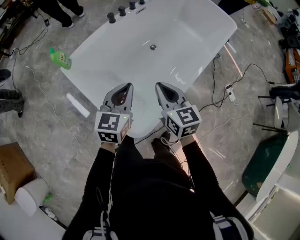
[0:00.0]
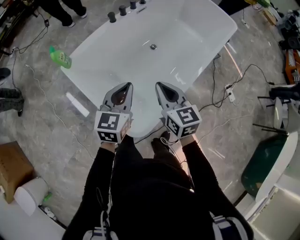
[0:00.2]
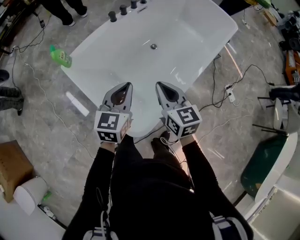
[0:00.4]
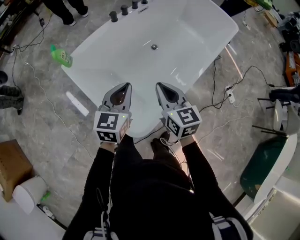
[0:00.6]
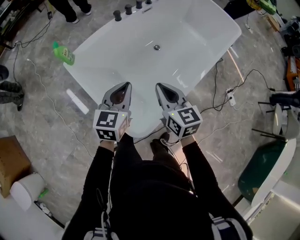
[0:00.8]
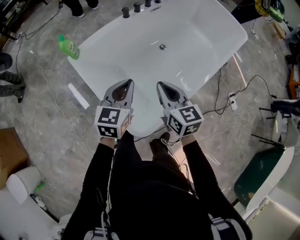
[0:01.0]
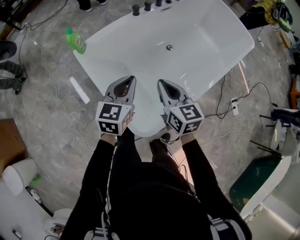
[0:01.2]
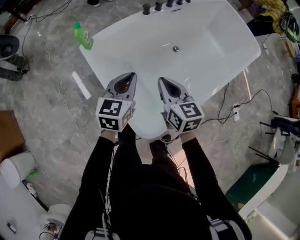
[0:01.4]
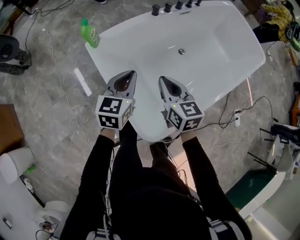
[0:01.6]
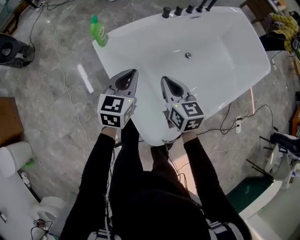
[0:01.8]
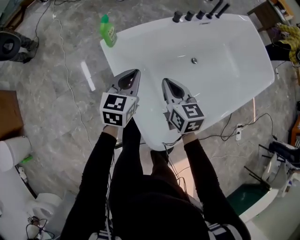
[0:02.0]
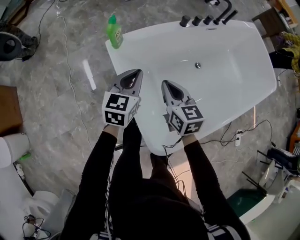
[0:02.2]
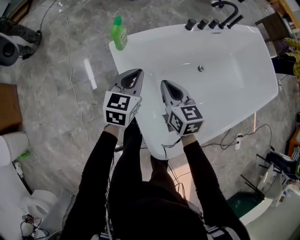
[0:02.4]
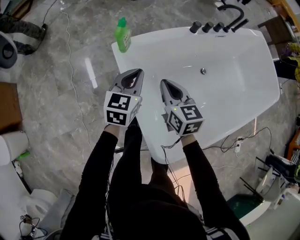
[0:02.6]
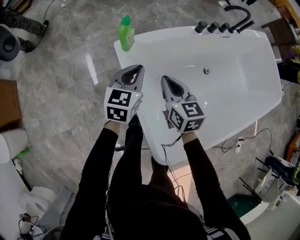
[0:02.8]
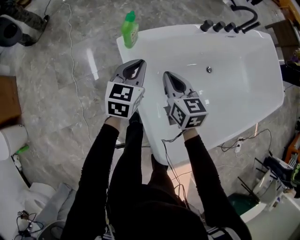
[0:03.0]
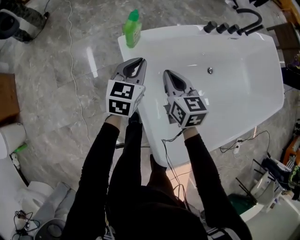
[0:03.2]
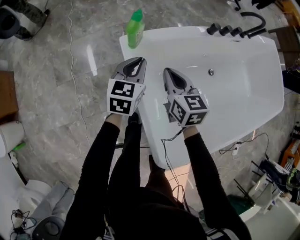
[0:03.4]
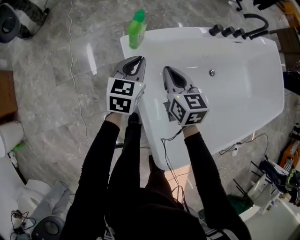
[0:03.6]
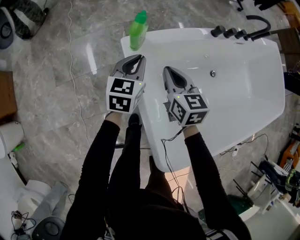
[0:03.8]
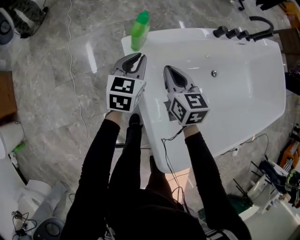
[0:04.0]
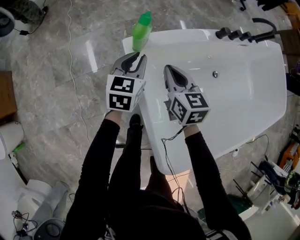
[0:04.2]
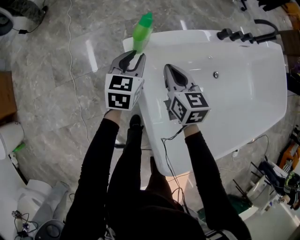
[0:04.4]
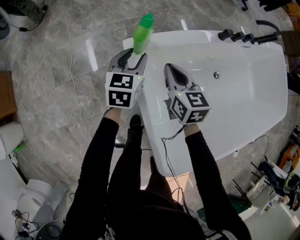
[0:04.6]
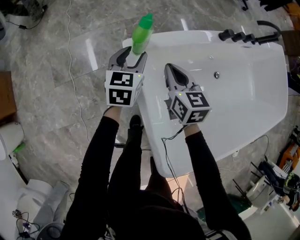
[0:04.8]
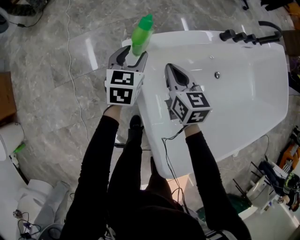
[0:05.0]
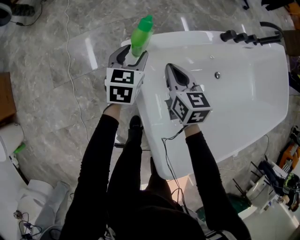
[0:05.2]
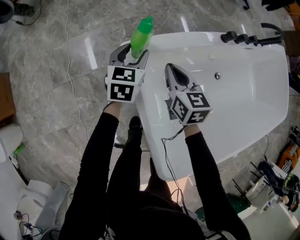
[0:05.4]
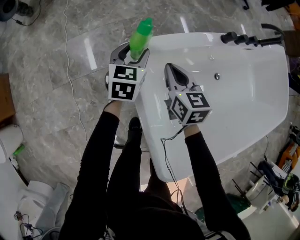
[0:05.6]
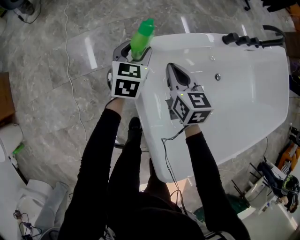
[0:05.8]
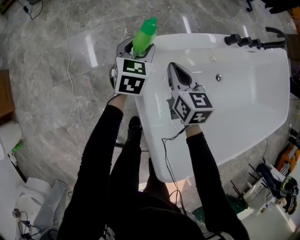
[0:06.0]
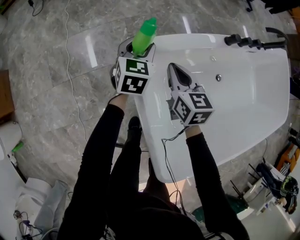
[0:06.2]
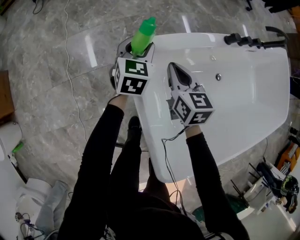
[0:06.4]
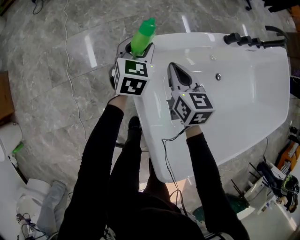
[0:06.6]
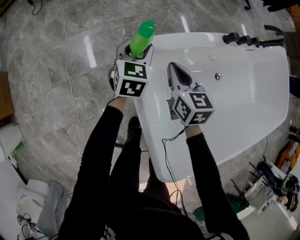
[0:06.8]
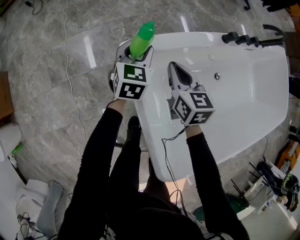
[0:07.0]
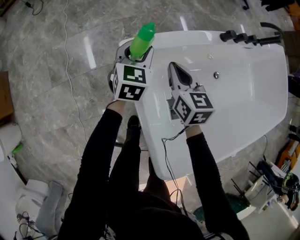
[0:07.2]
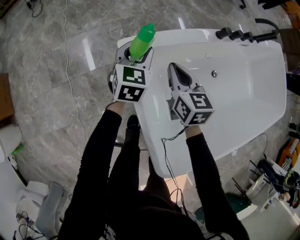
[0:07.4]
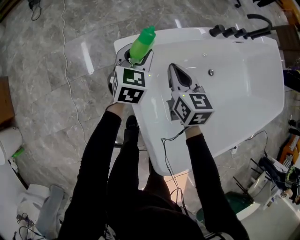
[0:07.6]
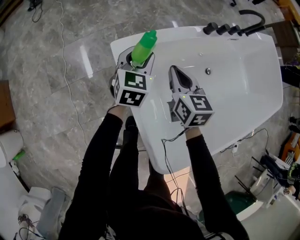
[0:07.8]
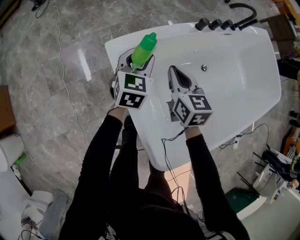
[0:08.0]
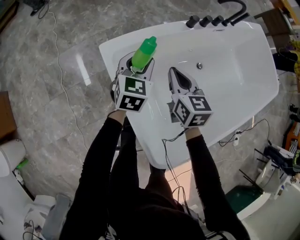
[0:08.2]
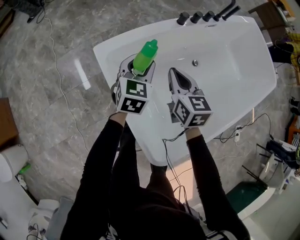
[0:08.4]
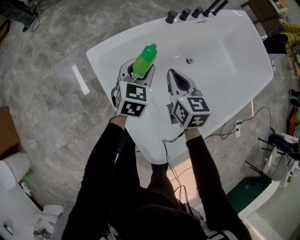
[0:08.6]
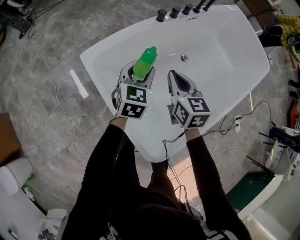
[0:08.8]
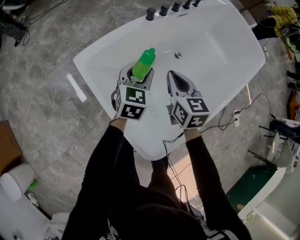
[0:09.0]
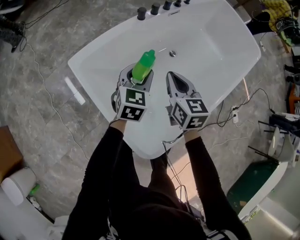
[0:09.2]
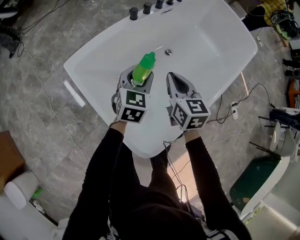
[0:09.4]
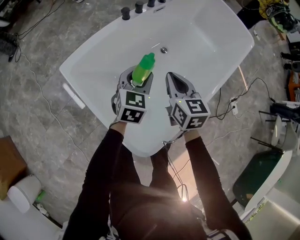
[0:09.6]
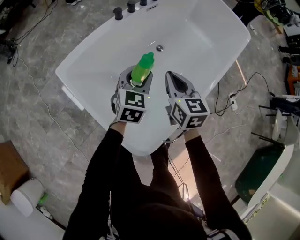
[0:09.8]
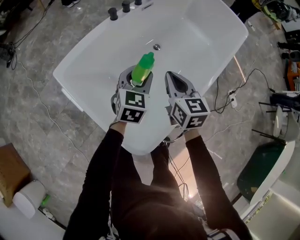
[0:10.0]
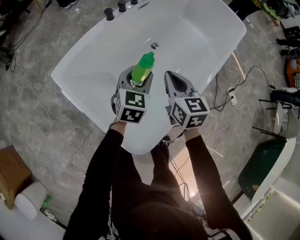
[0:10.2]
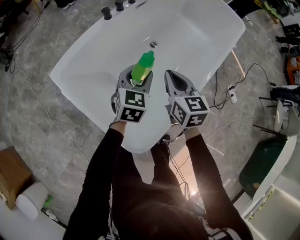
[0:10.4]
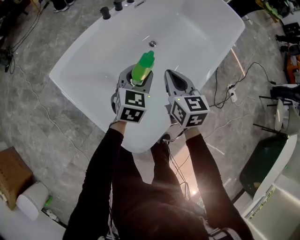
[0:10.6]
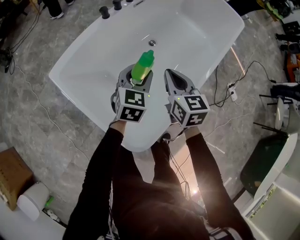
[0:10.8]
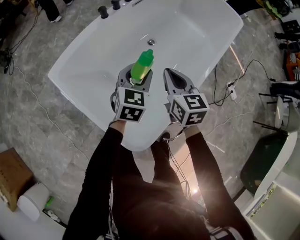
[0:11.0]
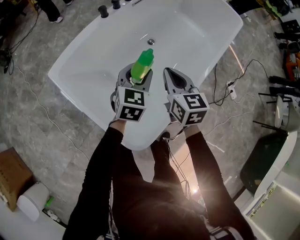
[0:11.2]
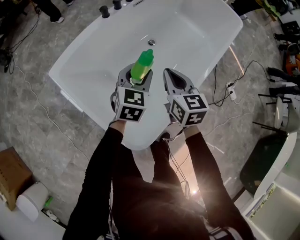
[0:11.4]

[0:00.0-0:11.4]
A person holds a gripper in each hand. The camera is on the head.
0:00.0 to 0:01.4: The left gripper travels to the left by about 10 cm. The right gripper heads to the left and forward, covering approximately 10 cm.
0:01.4 to 0:02.8: The grippers both shift to the left, forward and downward by roughly 25 cm.
0:02.8 to 0:04.2: The right gripper is displaced forward and downward by some 10 cm. Meanwhile the left gripper is displaced forward, downward and to the left by some 15 cm.
0:04.2 to 0:05.6: The right gripper changes place by approximately 5 cm. Meanwhile the left gripper is displaced forward by roughly 5 cm, and opens.
0:05.6 to 0:07.2: There are only small adjustments of the grippers.
0:07.2 to 0:08.6: Both grippers move to the right, backward and upward, about 25 cm.
0:08.6 to 0:10.0: Both grippers move to the right, roughly 20 cm.
0:10.0 to 0:11.4: The grippers move only a little.

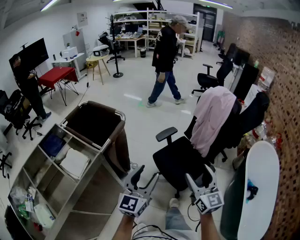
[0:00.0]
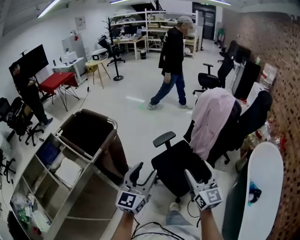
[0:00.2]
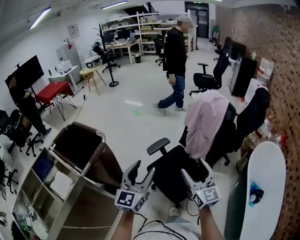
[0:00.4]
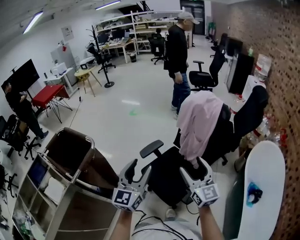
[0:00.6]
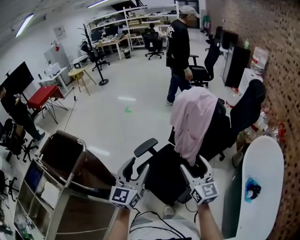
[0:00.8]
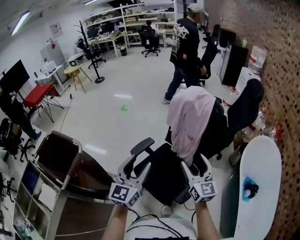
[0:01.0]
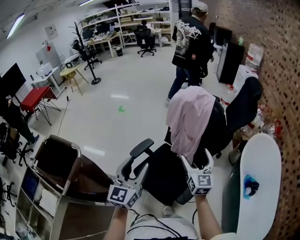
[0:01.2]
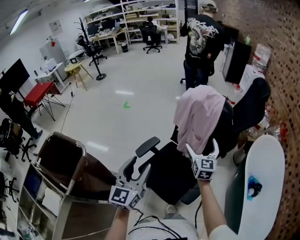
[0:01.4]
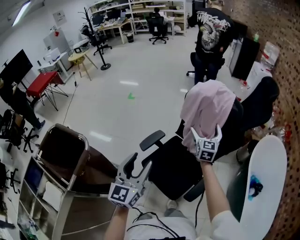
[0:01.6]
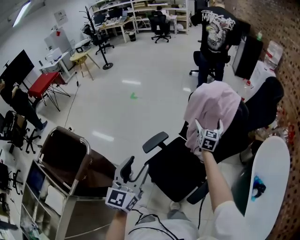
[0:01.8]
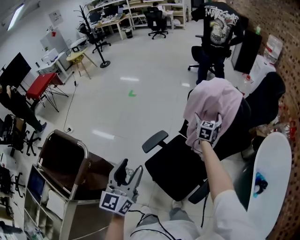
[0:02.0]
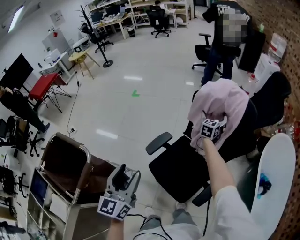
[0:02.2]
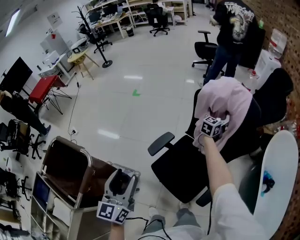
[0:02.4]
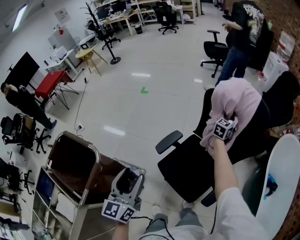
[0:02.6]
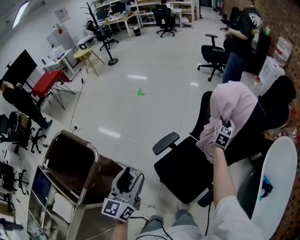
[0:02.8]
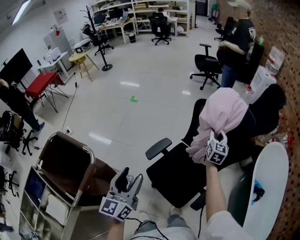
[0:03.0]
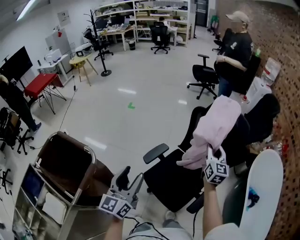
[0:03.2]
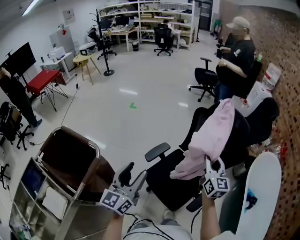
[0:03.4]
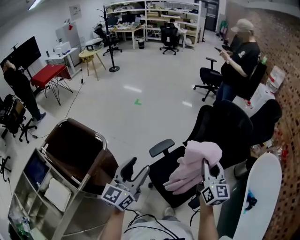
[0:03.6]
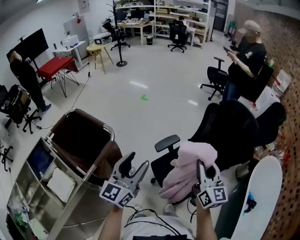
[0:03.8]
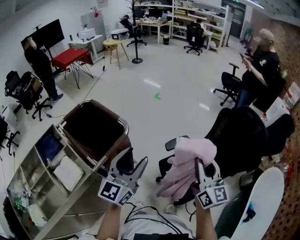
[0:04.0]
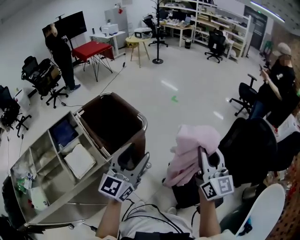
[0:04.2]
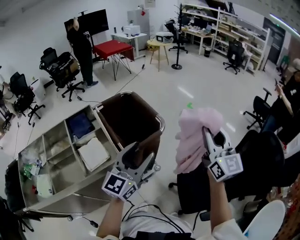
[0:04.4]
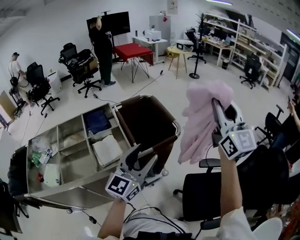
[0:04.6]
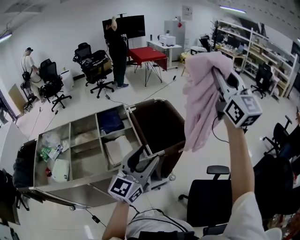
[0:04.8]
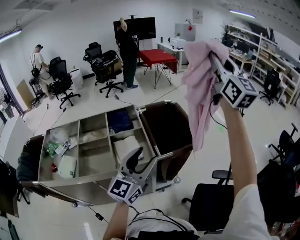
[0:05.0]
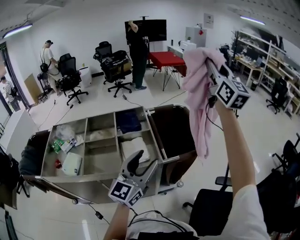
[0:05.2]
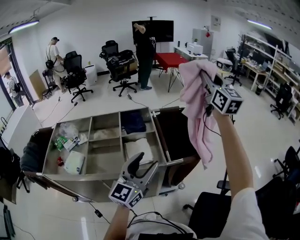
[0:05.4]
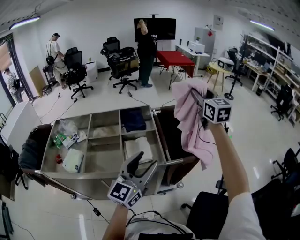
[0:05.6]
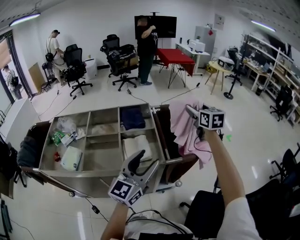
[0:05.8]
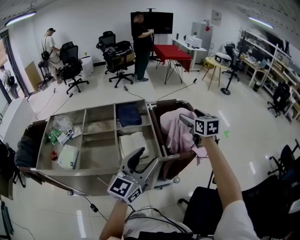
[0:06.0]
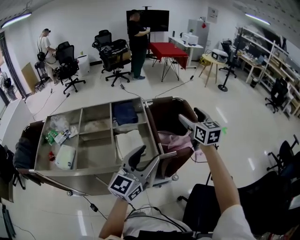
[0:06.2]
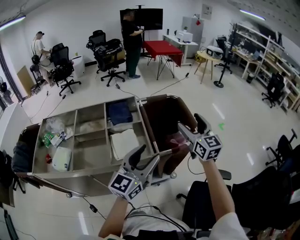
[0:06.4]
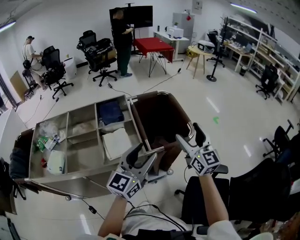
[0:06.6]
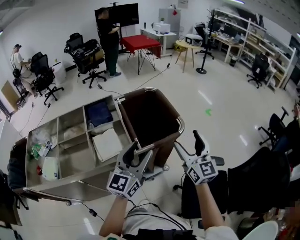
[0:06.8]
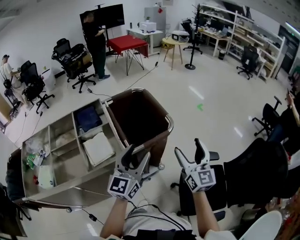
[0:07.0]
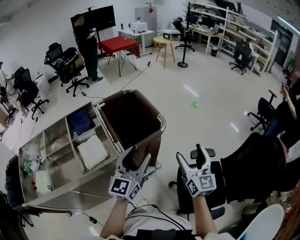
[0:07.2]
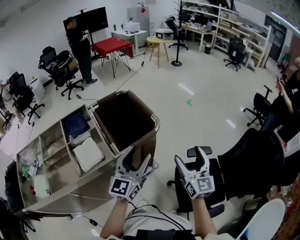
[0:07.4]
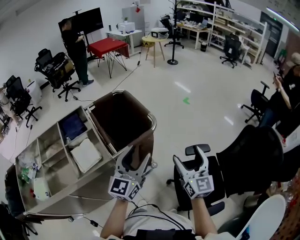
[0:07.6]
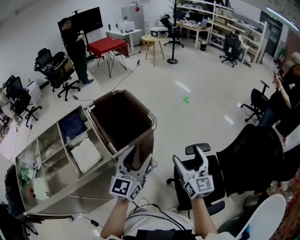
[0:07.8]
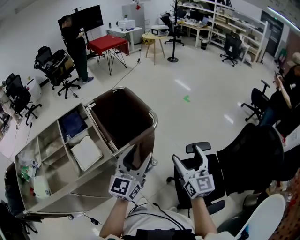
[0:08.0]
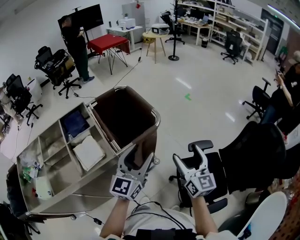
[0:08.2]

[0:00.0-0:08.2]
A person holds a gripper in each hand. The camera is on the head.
0:00.0 to 0:01.6: The left gripper shifts some 30 cm forward. The right gripper heads forward and to the right, covering approximately 50 cm, rotates about 30 degrees, and opens.
0:01.6 to 0:03.2: The left gripper shifts roughly 10 cm to the left. Meanwhile the right gripper reaches some 15 cm forward, then returns, and closes up.
0:03.2 to 0:05.0: The right gripper ends up some 80 cm from where it was, and angles its fingers upward, by roughly 30 degrees. The left gripper moves approximately 40 cm, and changes its angle by approximately 50 degrees.
0:05.0 to 0:06.6: The right gripper travels downward by approximately 35 cm, rotates about 20 degrees, and opens its fingers. Meanwhile the left gripper travels downward by roughly 5 cm, and moves roughly 5 cm to the left and comes back.
0:06.6 to 0:08.2: The right gripper heads to the right, backward and downward, covering roughly 20 cm, and rotates roughly 30 degrees. The left gripper heads to the right, covering about 15 cm.

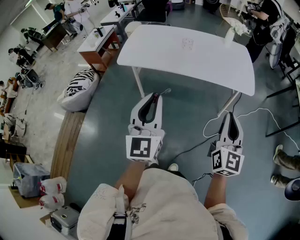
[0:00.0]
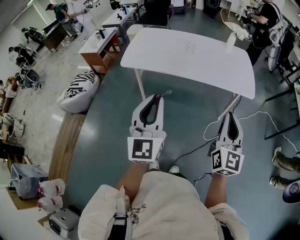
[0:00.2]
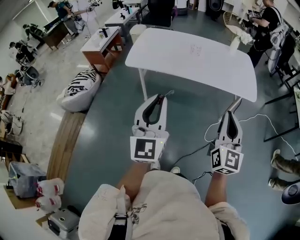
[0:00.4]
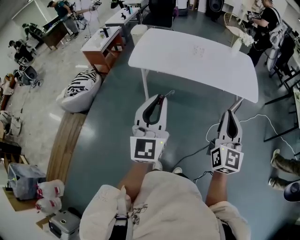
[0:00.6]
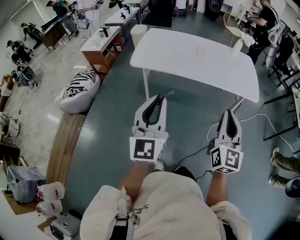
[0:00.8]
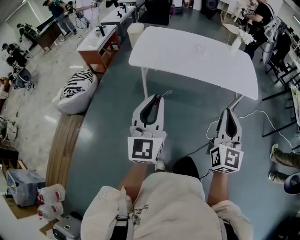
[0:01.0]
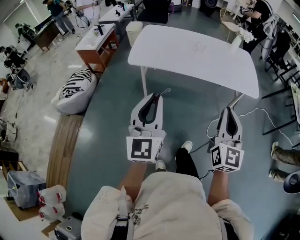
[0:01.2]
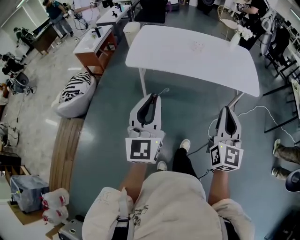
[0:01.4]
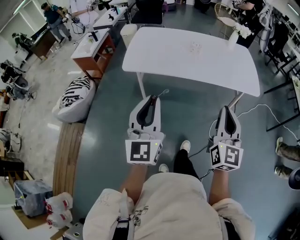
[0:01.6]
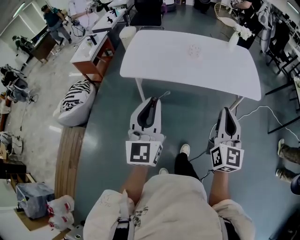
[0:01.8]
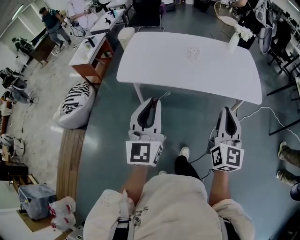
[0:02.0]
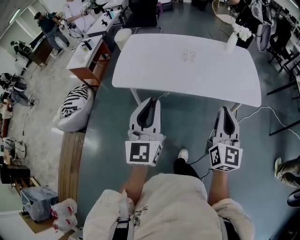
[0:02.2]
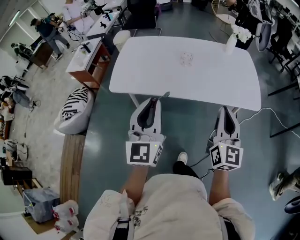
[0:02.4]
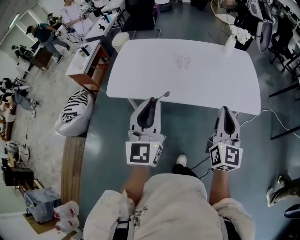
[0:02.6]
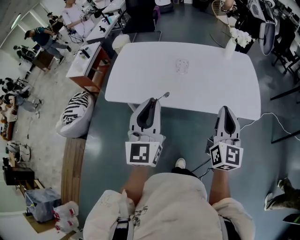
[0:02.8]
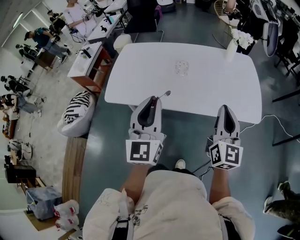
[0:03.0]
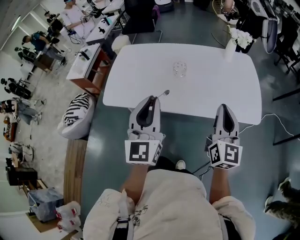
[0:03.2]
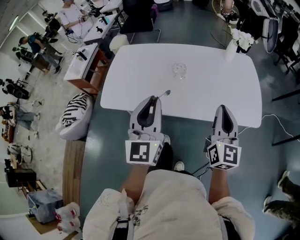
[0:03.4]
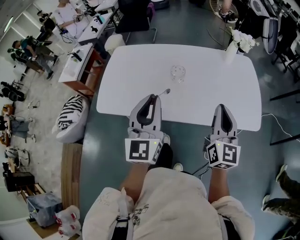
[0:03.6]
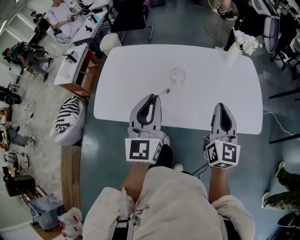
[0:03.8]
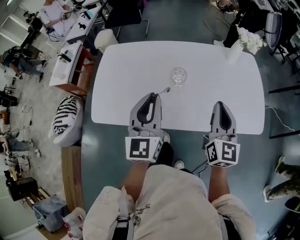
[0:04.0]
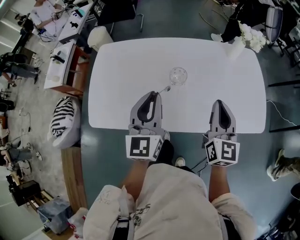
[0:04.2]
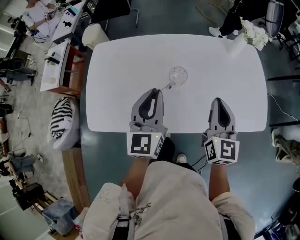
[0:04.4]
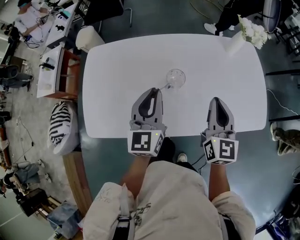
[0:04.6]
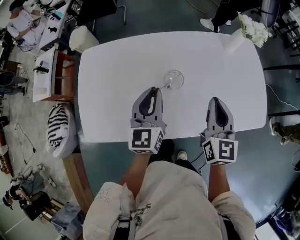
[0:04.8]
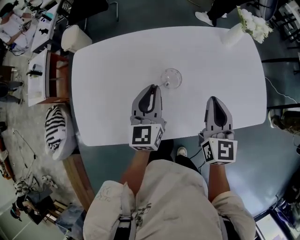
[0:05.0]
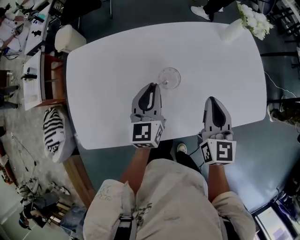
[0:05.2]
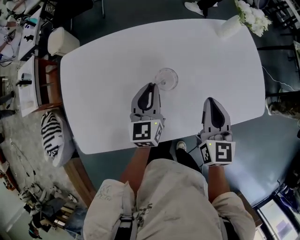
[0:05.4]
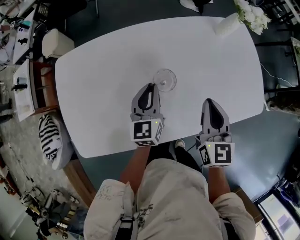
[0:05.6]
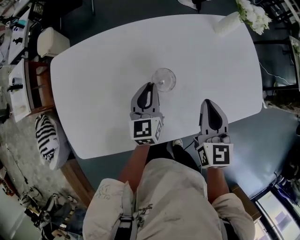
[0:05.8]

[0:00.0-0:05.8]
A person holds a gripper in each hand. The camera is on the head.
0:00.0 to 0:01.4: Both grippers move to the left, some 20 cm.
0:01.4 to 0:02.8: Both grippers move forward and to the right, approximately 30 cm.
0:02.8 to 0:04.4: Both grippers travel together forward, roughly 30 cm.
0:04.4 to 0:05.8: The right gripper moves downward and forward, about 10 cm. The left gripper shifts approximately 25 cm downward and forward, and swivels approximately 20 degrees.
